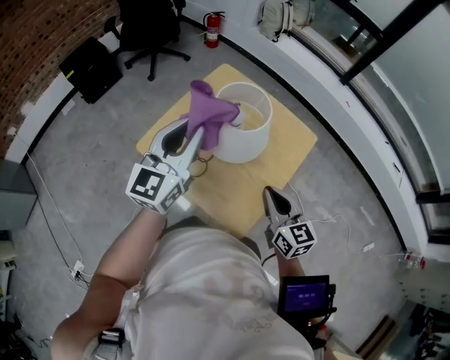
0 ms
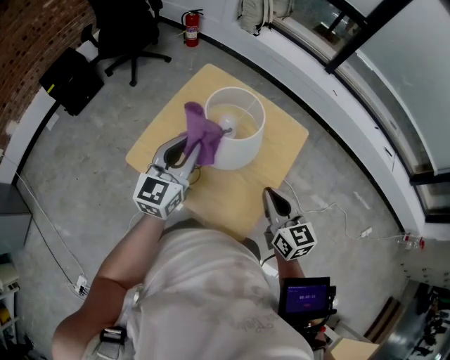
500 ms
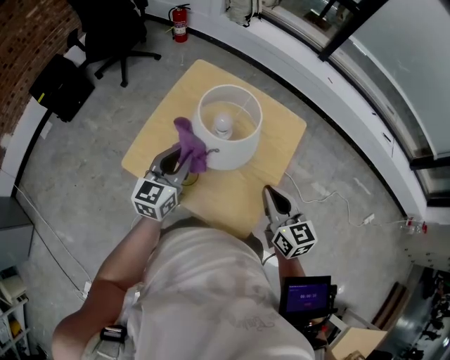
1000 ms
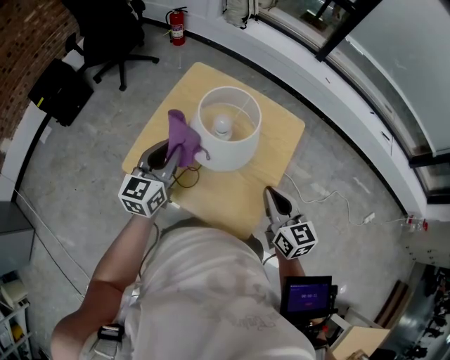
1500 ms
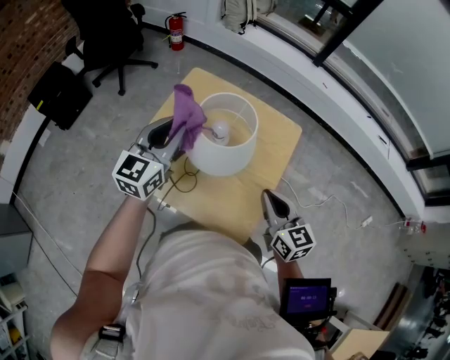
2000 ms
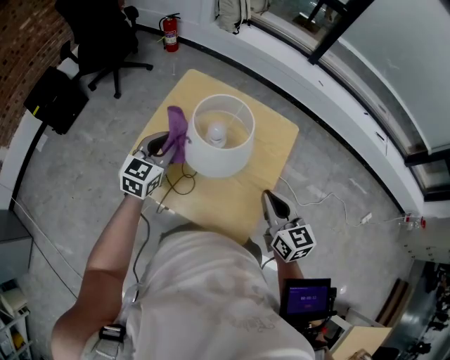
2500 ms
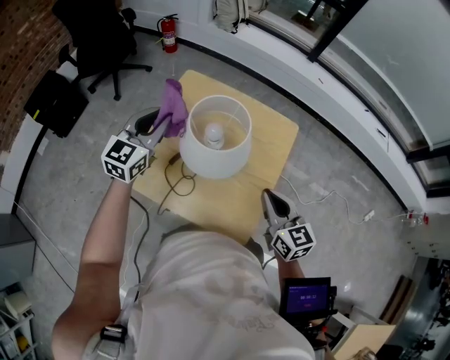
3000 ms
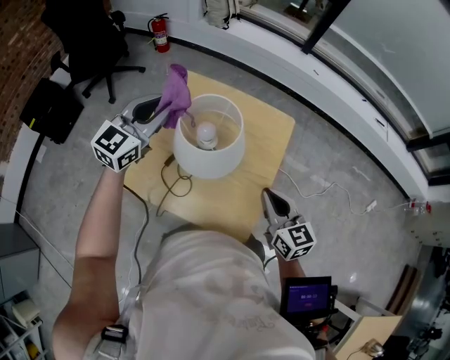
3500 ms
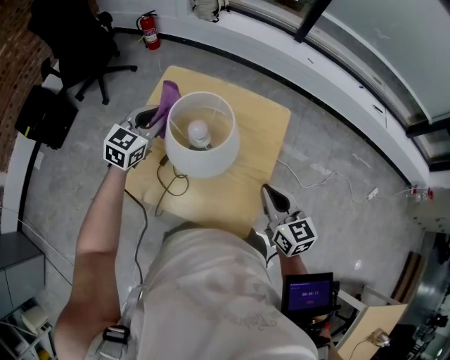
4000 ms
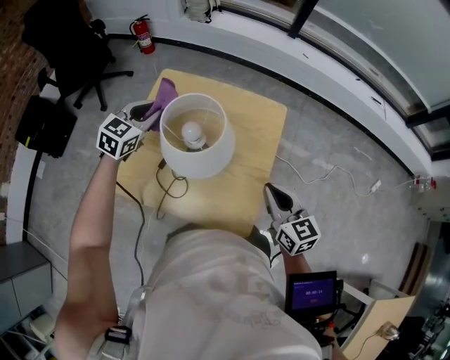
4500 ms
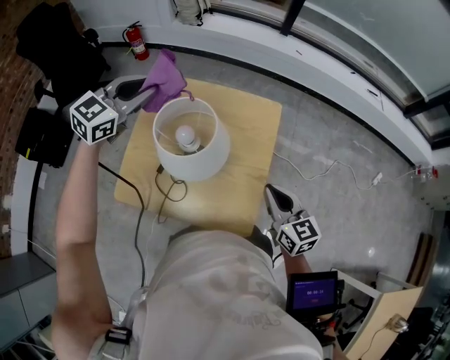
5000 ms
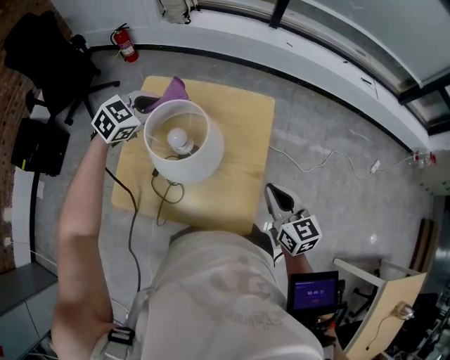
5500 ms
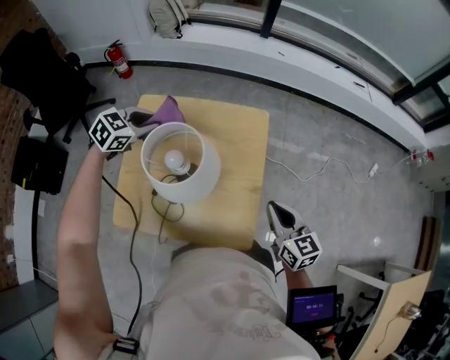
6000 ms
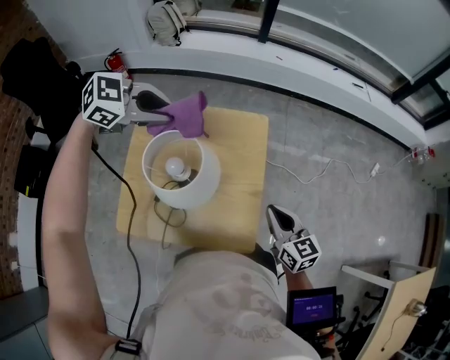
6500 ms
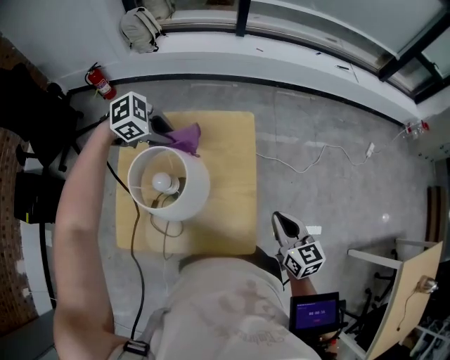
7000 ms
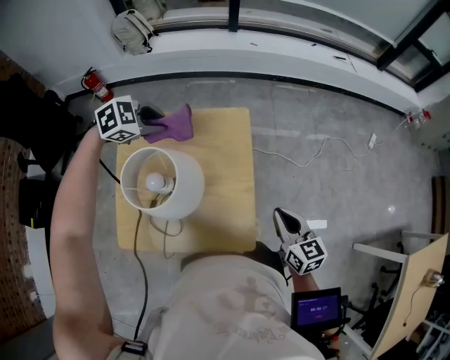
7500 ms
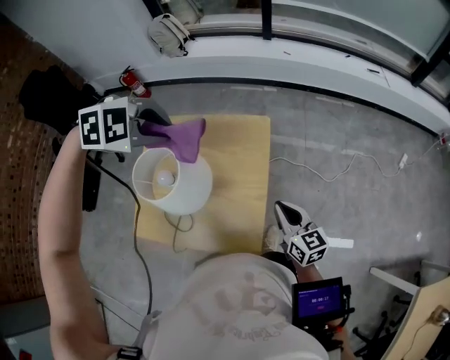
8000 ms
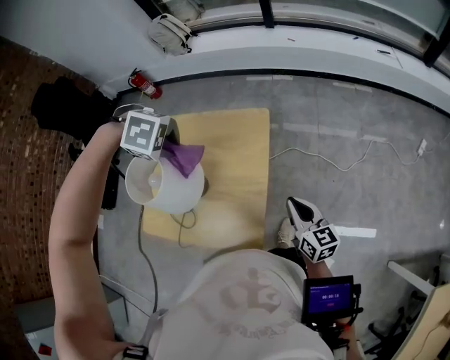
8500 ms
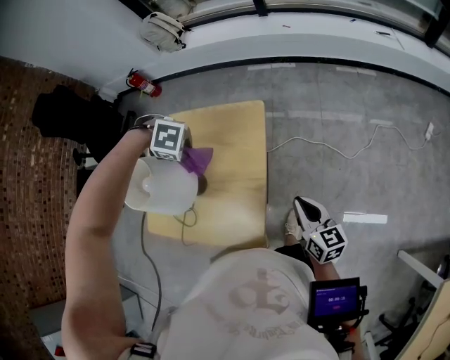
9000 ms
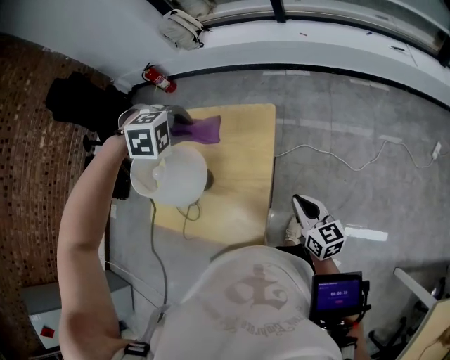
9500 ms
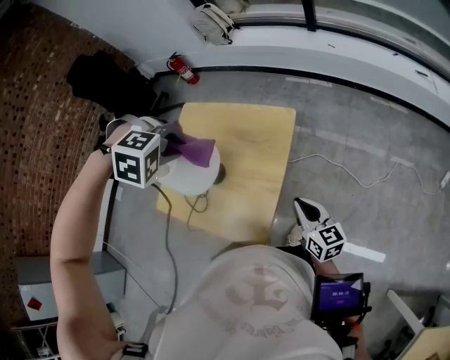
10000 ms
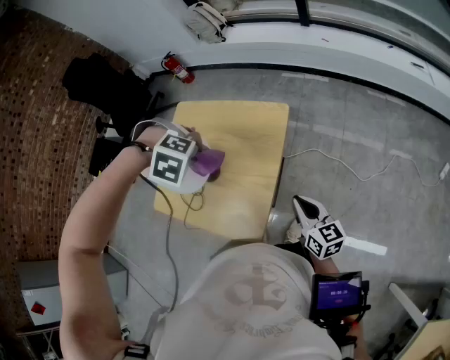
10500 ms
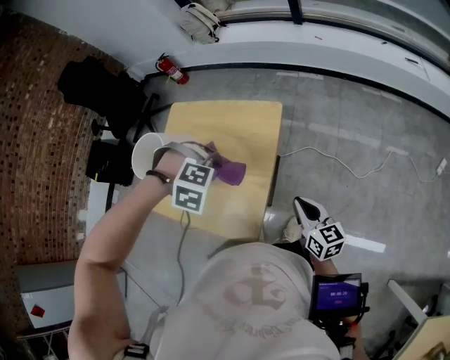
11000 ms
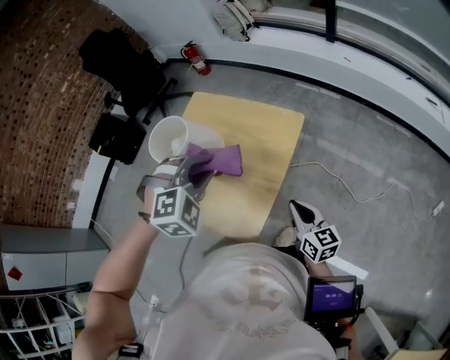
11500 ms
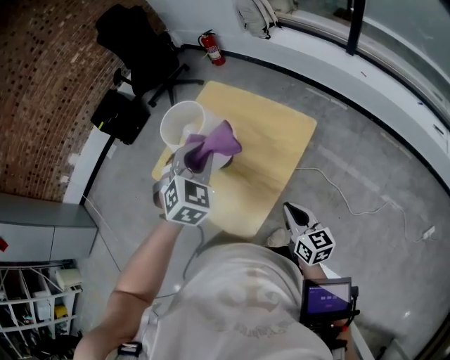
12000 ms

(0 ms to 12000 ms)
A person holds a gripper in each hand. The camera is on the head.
0 ms - 2000 ms: The left gripper heads forward and downward, covering approximately 10 cm.
2000 ms - 4000 ms: The left gripper moves up and down over some 10 cm, changing direction 2 times, and turns by approximately 20 degrees.
4000 ms - 6000 ms: The left gripper heads forward, covering roughly 10 cm, moves roughly 15 cm upward and comes back, and swivels about 40 degrees, while the right gripper goes roughly 5 cm to the right.
6000 ms - 8000 ms: The right gripper moves roughly 5 cm. Meanwhile the left gripper swings up and down, some 15 cm each way, with 2 reversals, and twists approximately 40 degrees clockwise, seen from behind.
8000 ms - 10000 ms: The left gripper moves some 20 cm downward and comes back, and turns by approximately 30 degrees.
10000 ms - 12000 ms: The right gripper ends up roughly 5 cm from where it was. Meanwhile the left gripper travels downward and back again, roughly 15 cm each way, and rotates around the line of its fingers by roughly 70 degrees, counterclockwise from behind.

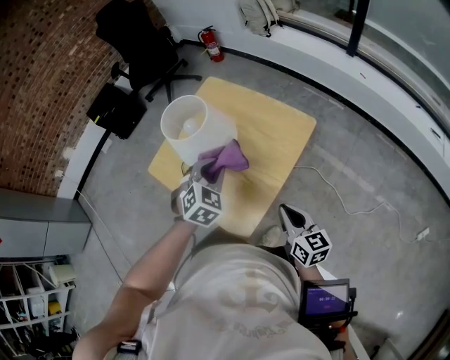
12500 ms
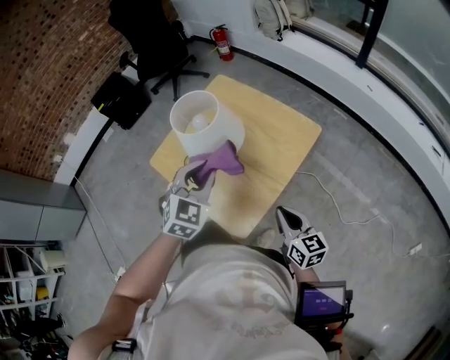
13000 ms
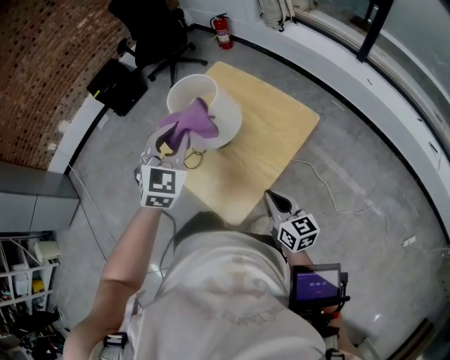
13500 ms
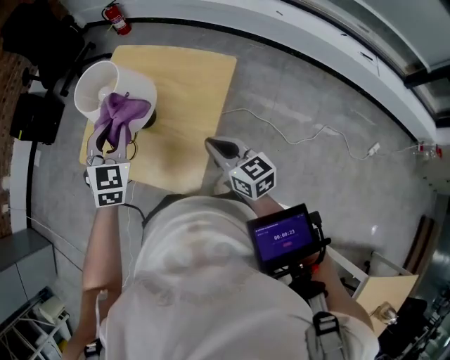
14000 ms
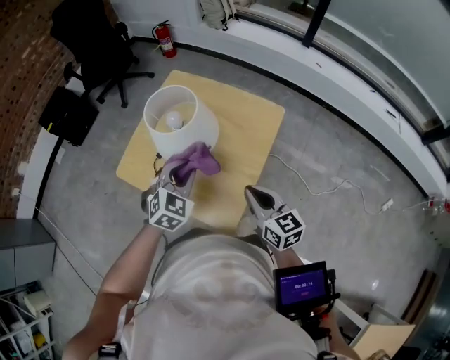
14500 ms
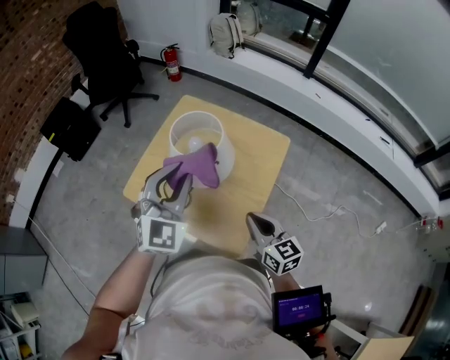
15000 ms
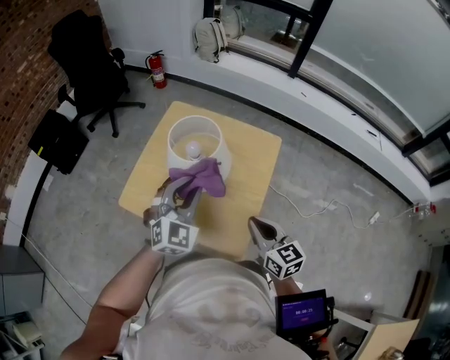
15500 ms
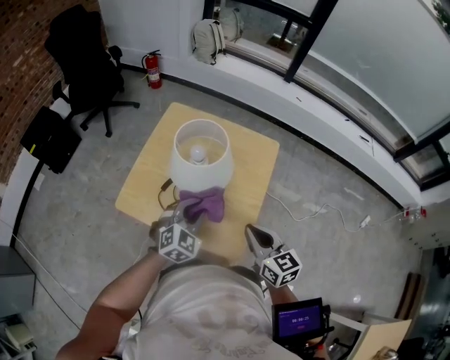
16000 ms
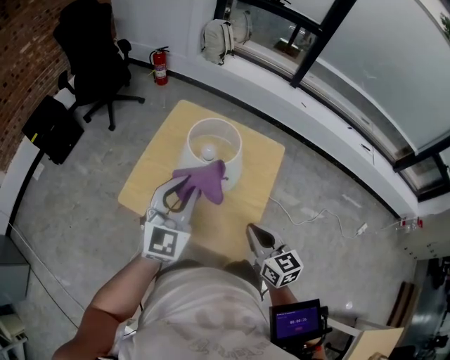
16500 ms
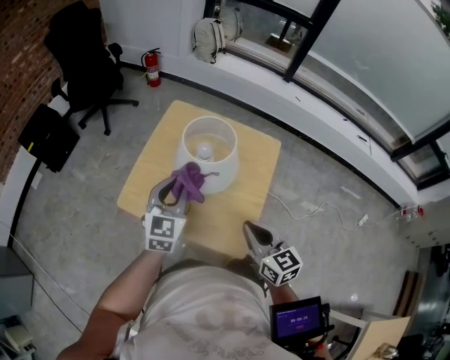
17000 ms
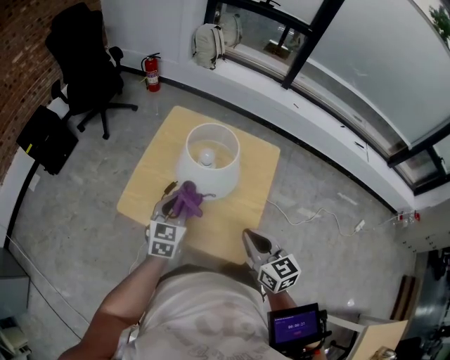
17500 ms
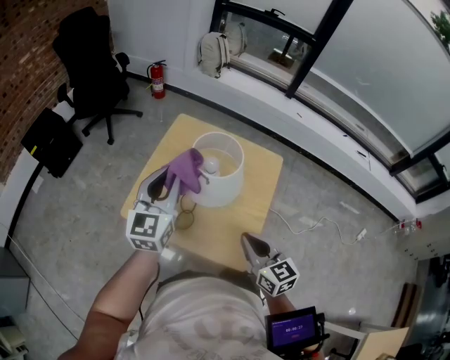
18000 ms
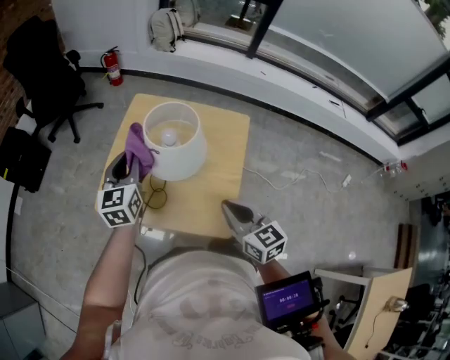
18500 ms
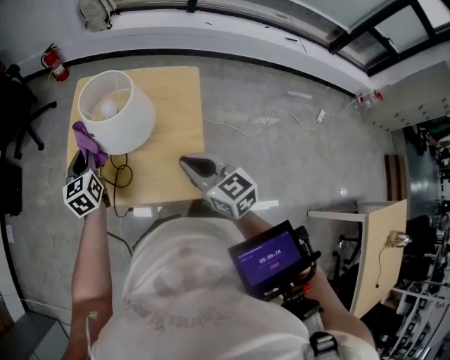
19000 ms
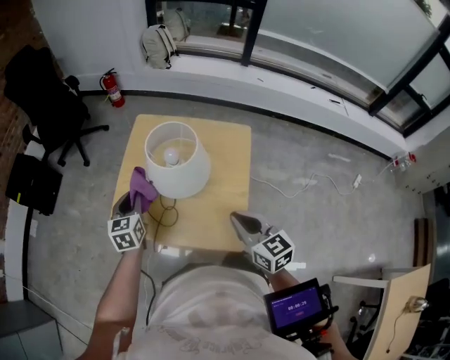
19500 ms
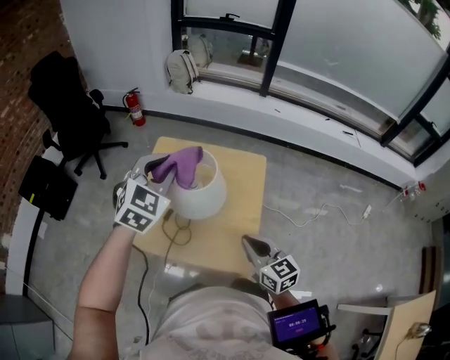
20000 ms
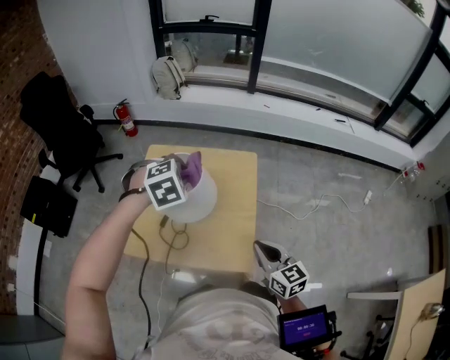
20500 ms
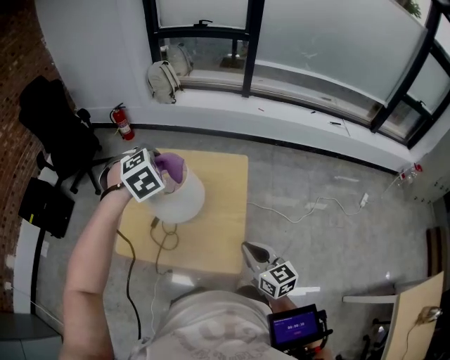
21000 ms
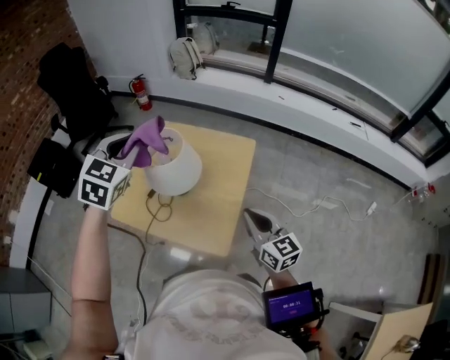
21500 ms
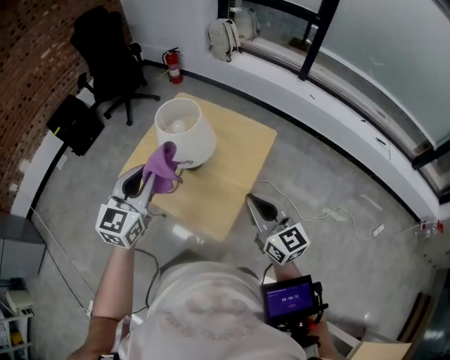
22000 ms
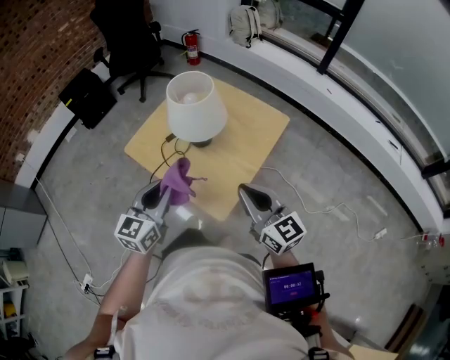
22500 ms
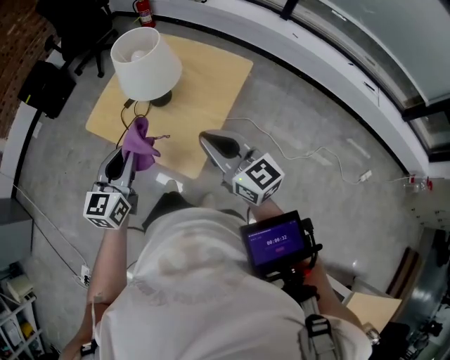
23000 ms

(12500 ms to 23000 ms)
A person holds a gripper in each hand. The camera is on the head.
12500 ms - 14500 ms: The right gripper moves to the left, some 5 cm. The left gripper moves about 15 cm upward and comes back.
14500 ms - 16500 ms: The right gripper goes about 10 cm to the left, while the left gripper goes up and down, roughly 20 cm each way, reversing 2 times, and angles its fingers upward, by some 30 degrees.
16500 ms - 19000 ms: The left gripper moves up and down over some 15 cm, changing direction 2 times, and turns by about 30 degrees.
19000 ms - 21000 ms: The right gripper travels to the right by about 10 cm. Meanwhile the left gripper moves up and down over about 20 cm, changing direction 2 times, and rolls clockwise, seen from behind, by some 70 degrees.
21000 ms - 23000 ms: The right gripper goes some 5 cm upward, and swivels roughly 40 degrees. The left gripper is displaced backward by some 30 cm, and rotates around the line of its fingers by some 70 degrees, counterclockwise from behind.

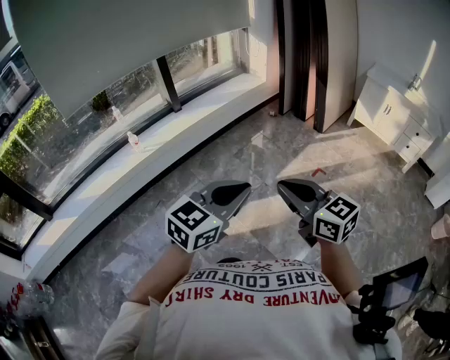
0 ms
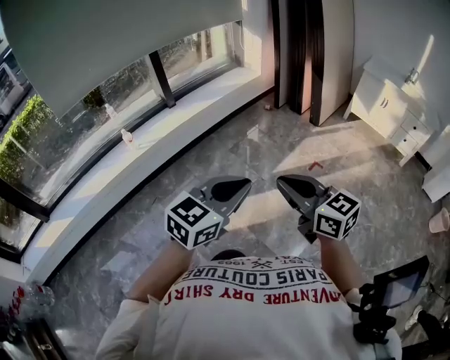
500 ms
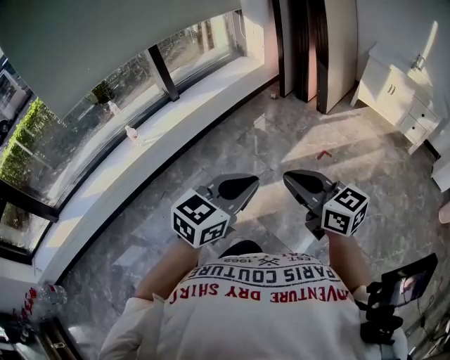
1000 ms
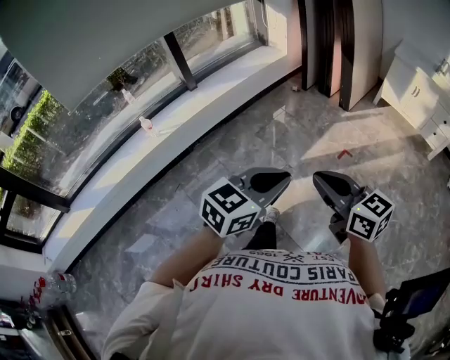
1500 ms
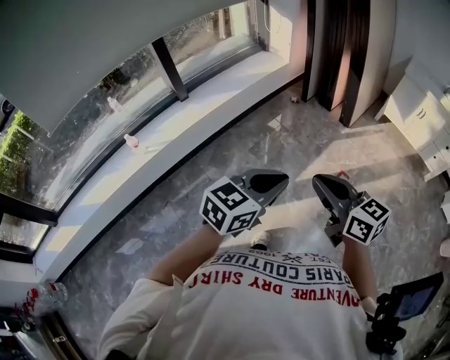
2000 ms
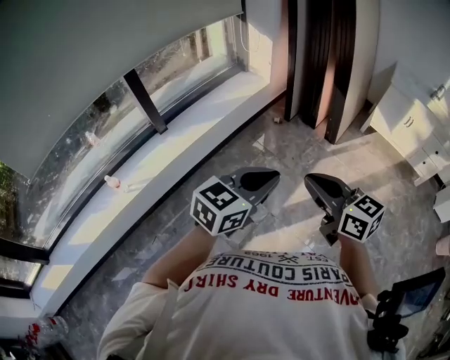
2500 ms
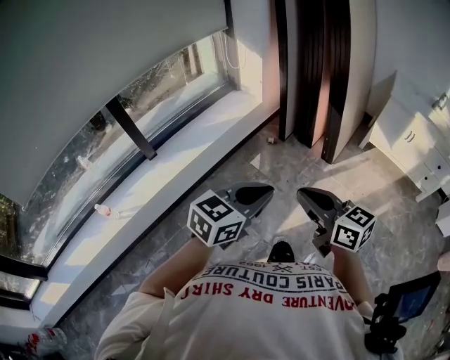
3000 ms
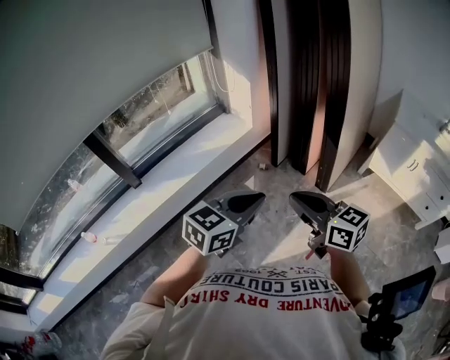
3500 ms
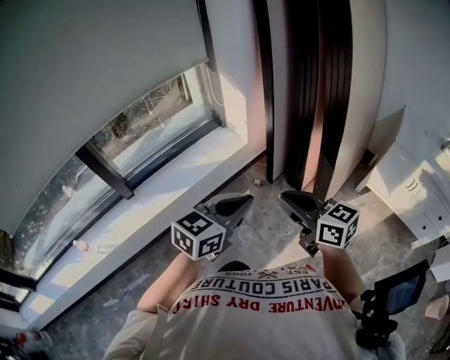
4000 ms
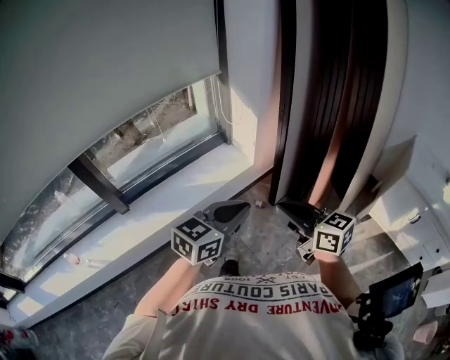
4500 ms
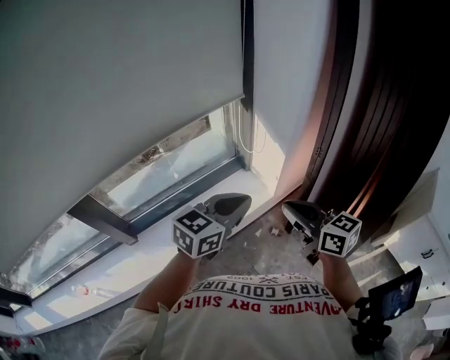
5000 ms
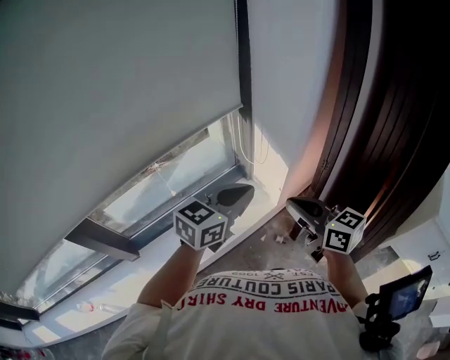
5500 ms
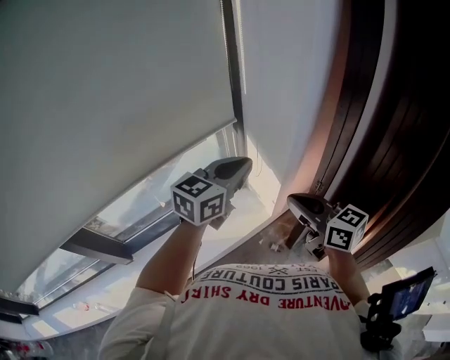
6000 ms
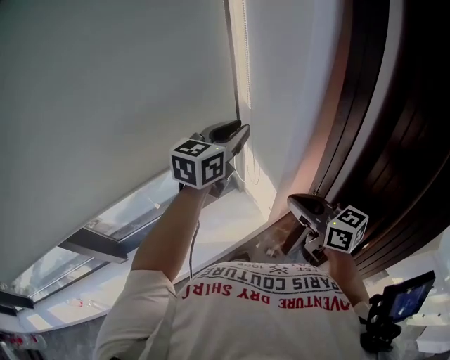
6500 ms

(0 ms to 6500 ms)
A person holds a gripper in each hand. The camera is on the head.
0 ms - 2000 ms: Both grippers move forward, about 25 cm.
2000 ms - 4500 ms: The two grippers travel together, forward, some 60 cm.
4500 ms - 6500 ms: The two grippers go some 50 cm forward. The left gripper opens its fingers.
